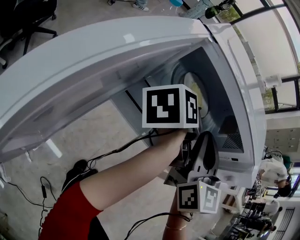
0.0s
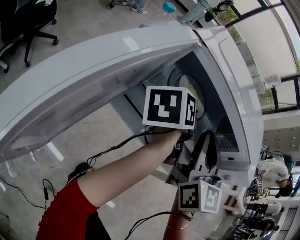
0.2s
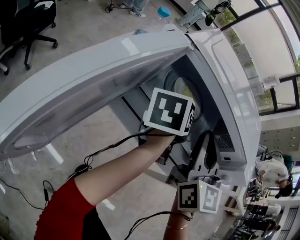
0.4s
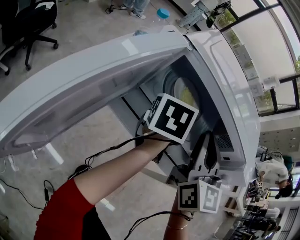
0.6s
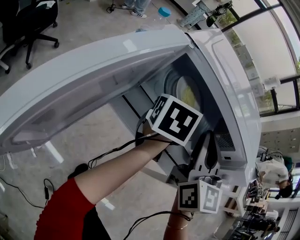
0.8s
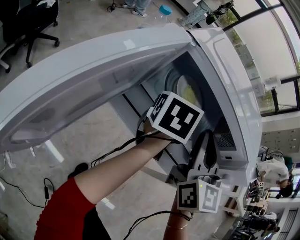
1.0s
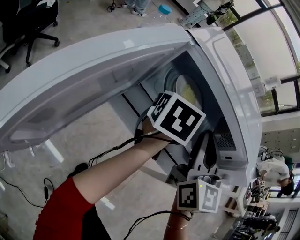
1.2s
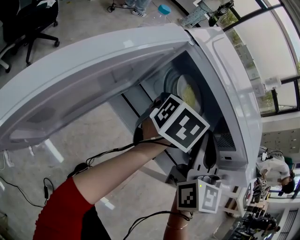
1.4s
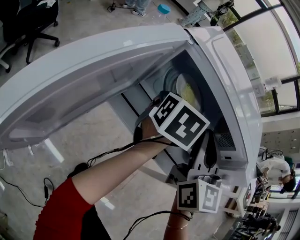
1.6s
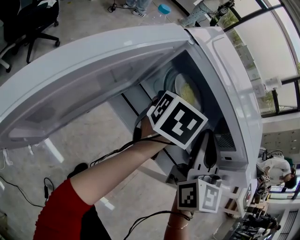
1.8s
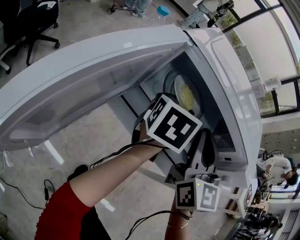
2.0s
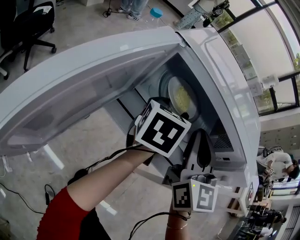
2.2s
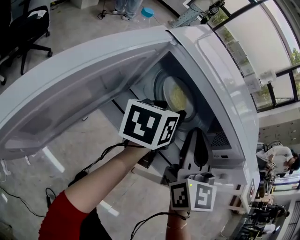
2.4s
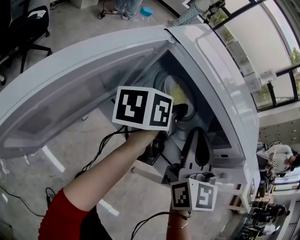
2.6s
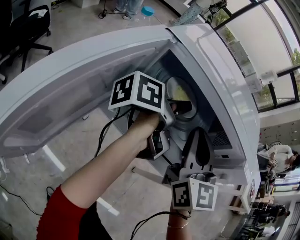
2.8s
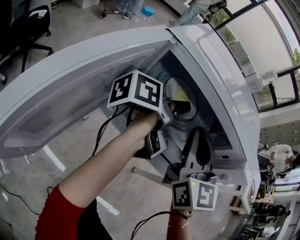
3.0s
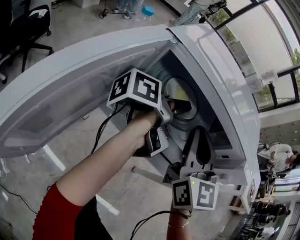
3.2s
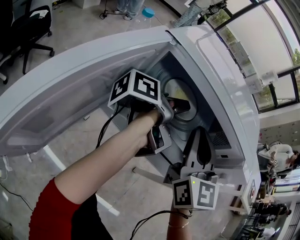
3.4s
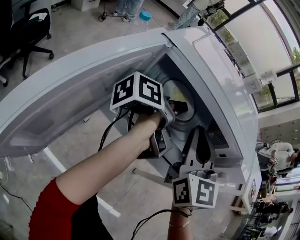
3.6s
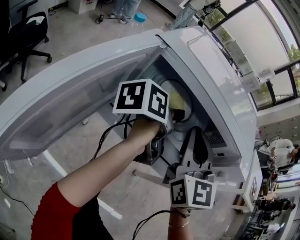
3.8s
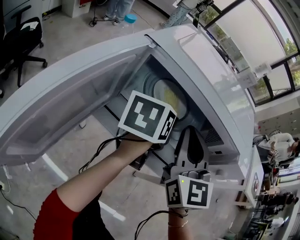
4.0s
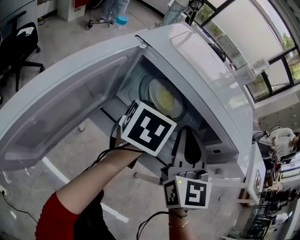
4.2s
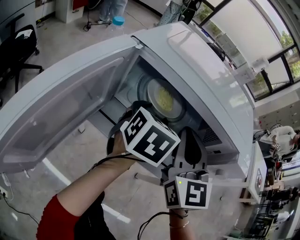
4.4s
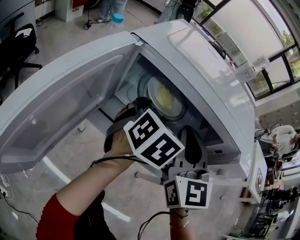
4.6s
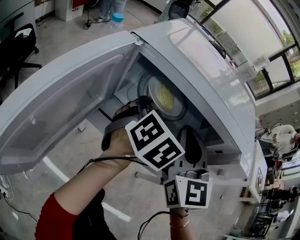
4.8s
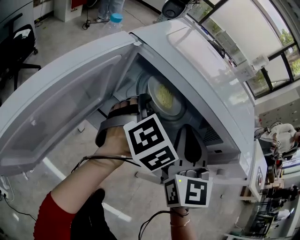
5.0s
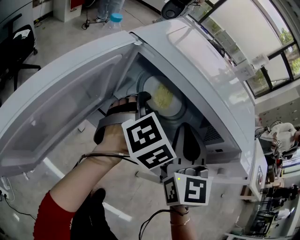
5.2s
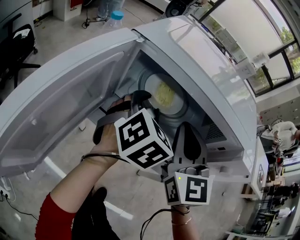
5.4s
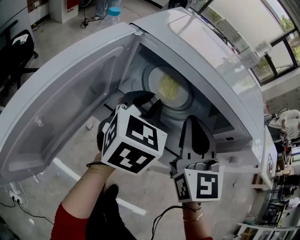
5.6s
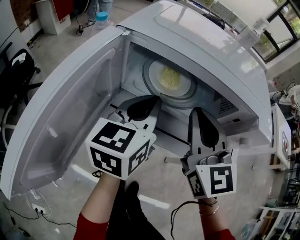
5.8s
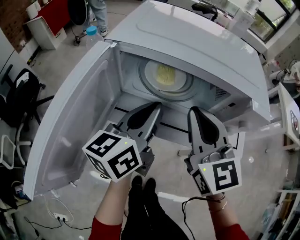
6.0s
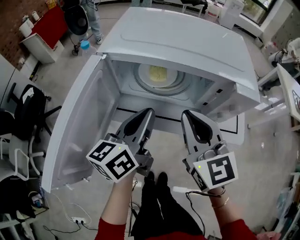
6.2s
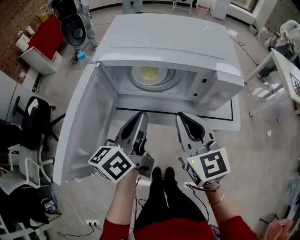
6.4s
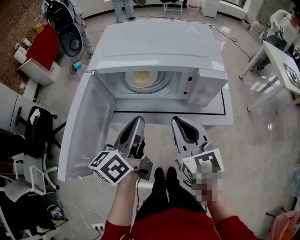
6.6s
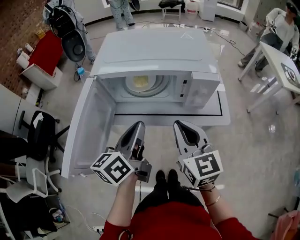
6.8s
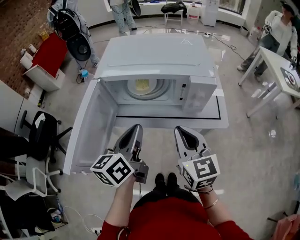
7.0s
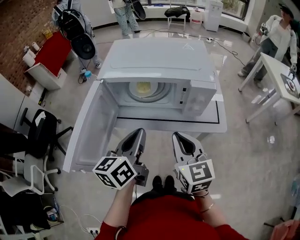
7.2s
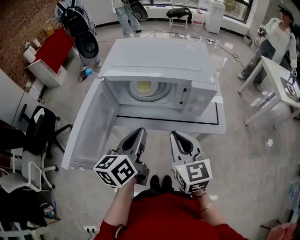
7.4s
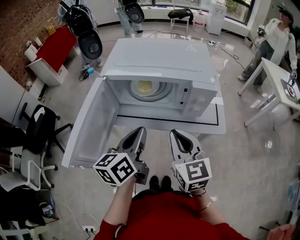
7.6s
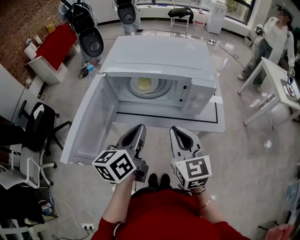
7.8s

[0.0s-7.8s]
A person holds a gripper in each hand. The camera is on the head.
0.0s to 1.6s: The left gripper rotates around the line of its fingers by some 50 degrees, clockwise from behind, and opens up.
1.6s to 3.2s: The left gripper rolls counterclockwise, seen from behind, by approximately 60 degrees.
3.2s to 4.6s: The left gripper rolls clockwise, seen from behind, by about 80 degrees.
4.6s to 6.2s: The left gripper heads backward and upward, covering roughly 15 cm, points its fingers about 30 degrees further upward, and closes; the right gripper moves backward, approximately 10 cm.
6.2s to 7.8s: Both grippers travel together backward, about 10 cm.

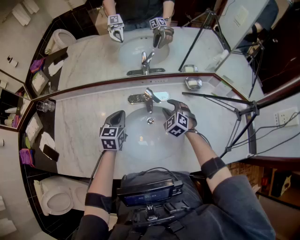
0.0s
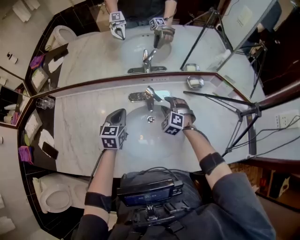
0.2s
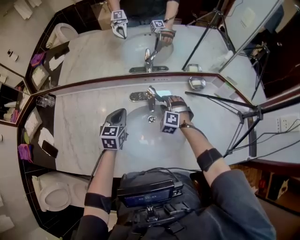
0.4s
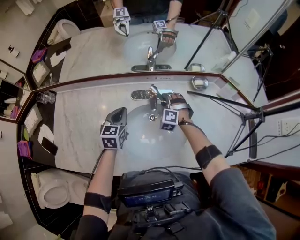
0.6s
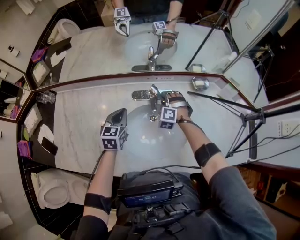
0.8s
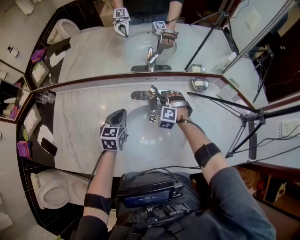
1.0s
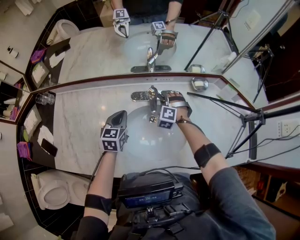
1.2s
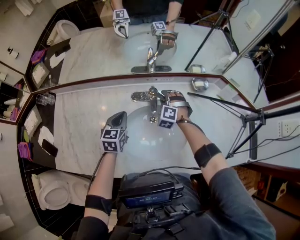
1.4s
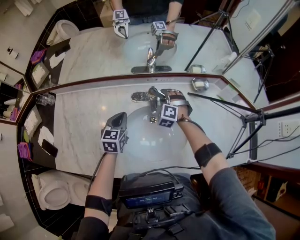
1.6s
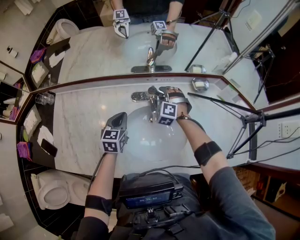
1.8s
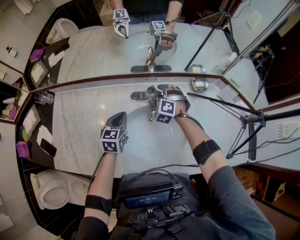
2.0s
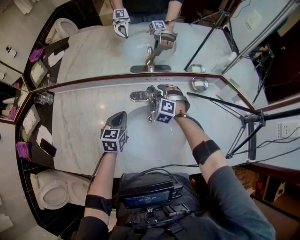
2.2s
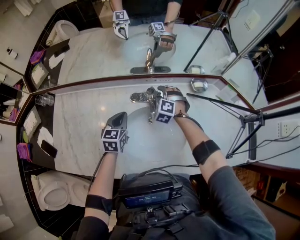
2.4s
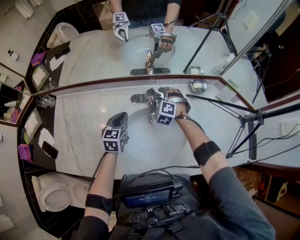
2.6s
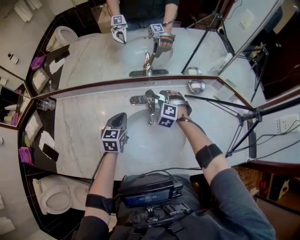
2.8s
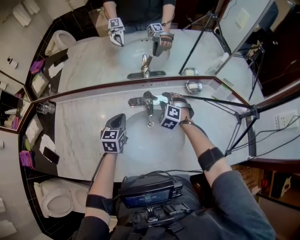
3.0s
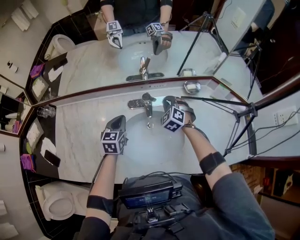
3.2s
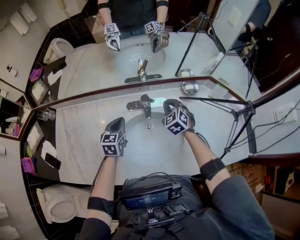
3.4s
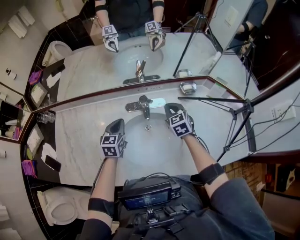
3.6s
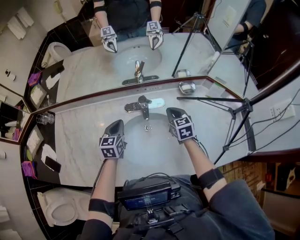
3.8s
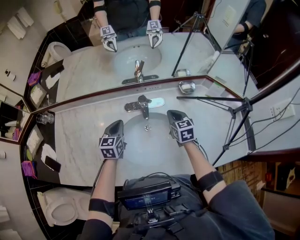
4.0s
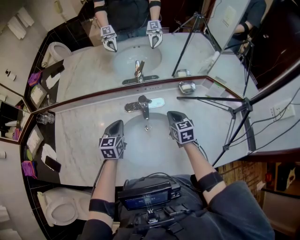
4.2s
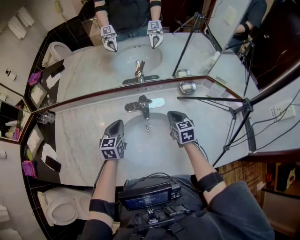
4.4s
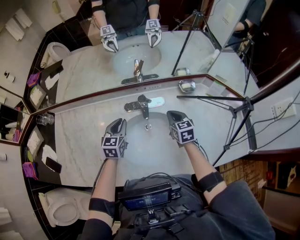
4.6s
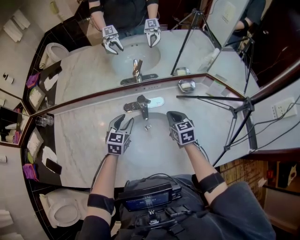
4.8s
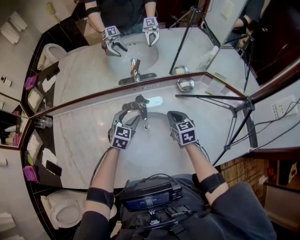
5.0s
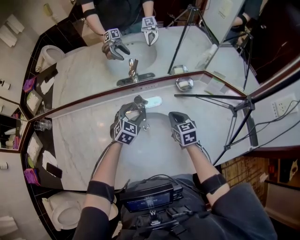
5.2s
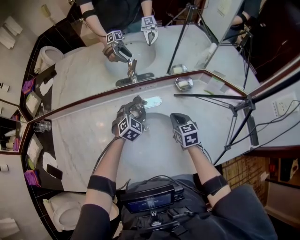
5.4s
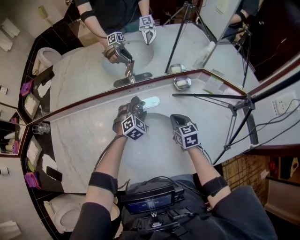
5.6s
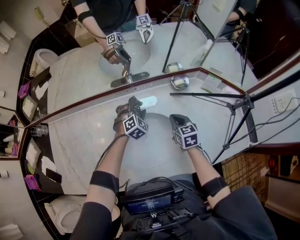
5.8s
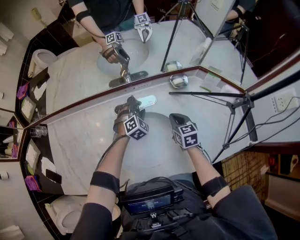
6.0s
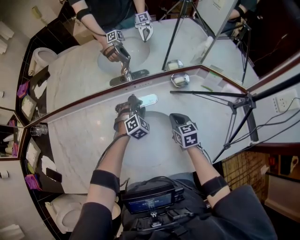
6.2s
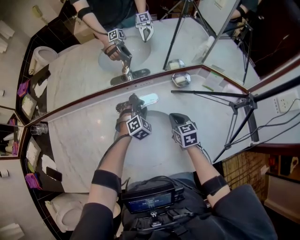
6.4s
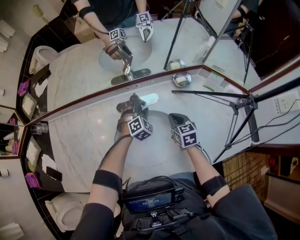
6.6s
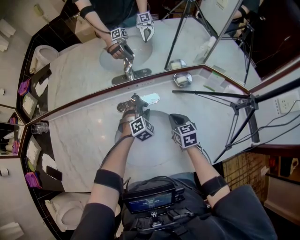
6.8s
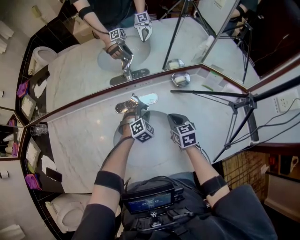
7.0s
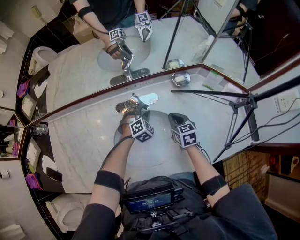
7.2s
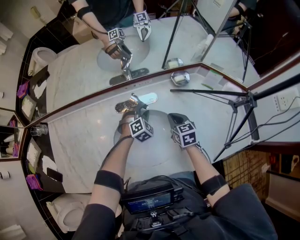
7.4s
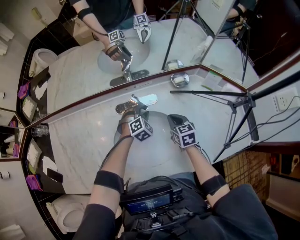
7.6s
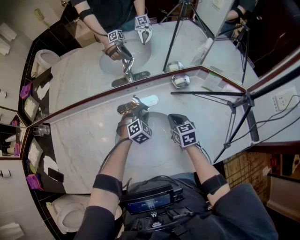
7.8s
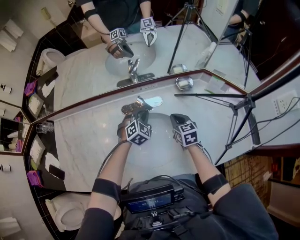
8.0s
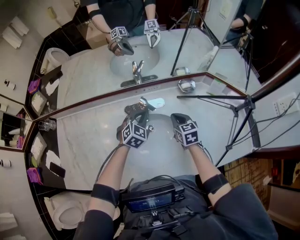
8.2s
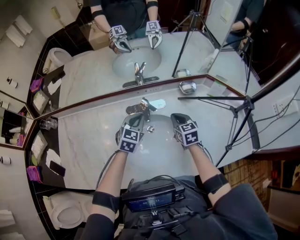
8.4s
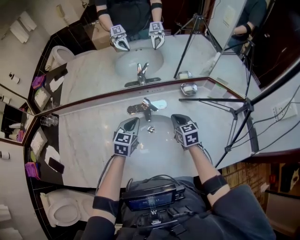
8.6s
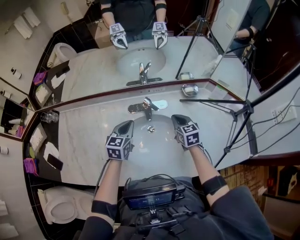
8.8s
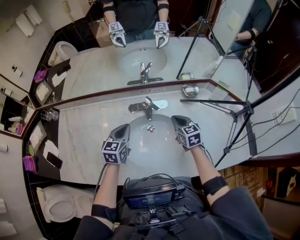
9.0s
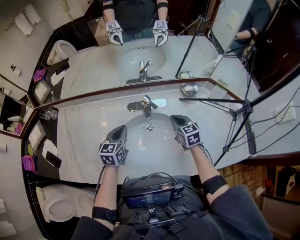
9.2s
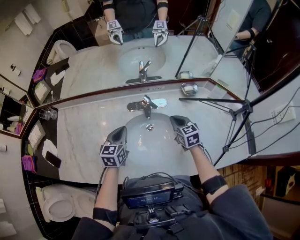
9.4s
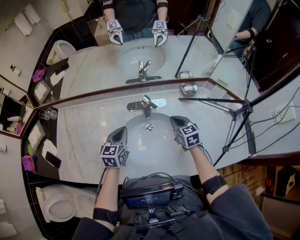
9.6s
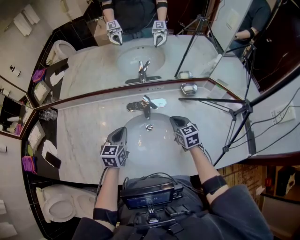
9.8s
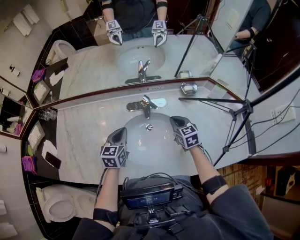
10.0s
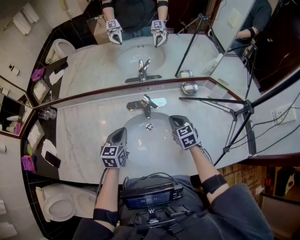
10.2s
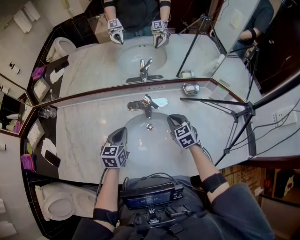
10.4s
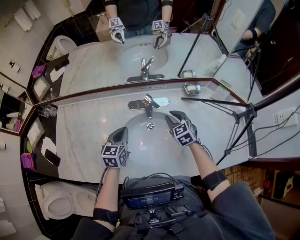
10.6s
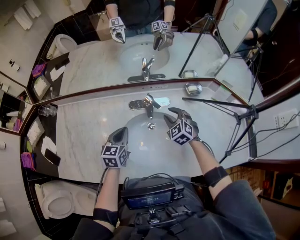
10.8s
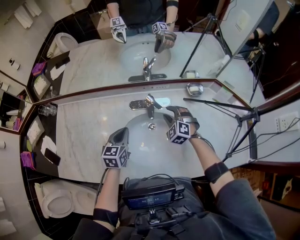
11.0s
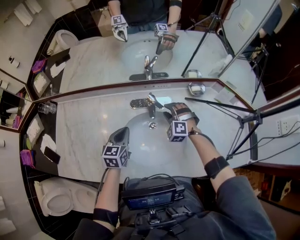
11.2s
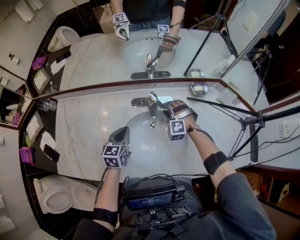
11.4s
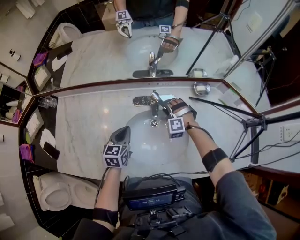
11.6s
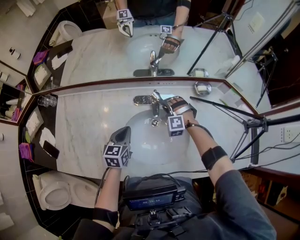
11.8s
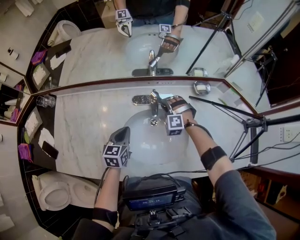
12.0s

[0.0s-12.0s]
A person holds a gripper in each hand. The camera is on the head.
0.0s to 1.6s: The right gripper moves forward and to the left, about 10 cm, and turns by some 30 degrees.
1.6s to 3.0s: There are only small adjustments of the grippers.
3.0s to 4.4s: The right gripper travels backward and to the right by some 10 cm, rotates around the line of its fingers by roughly 60 degrees, clockwise from behind, and closes its fingers.
4.4s to 6.0s: The right gripper is displaced to the right by about 5 cm. The left gripper goes some 20 cm to the right, downward and forward, twists some 60 degrees clockwise, seen from behind, and opens up.
6.0s to 7.6s: The grippers make only small movements.
7.6s to 9.0s: The right gripper shifts approximately 5 cm upward, while the left gripper travels to the left, upward and backward by roughly 25 cm, rotates around the line of its fingers by about 60 degrees, counterclockwise from behind, and closes its fingers.
9.0s to 10.4s: The grippers stay close to where they were, moving slightly.
10.4s to 12.0s: The right gripper moves forward, to the left and downward, roughly 15 cm, and rotates around the line of its fingers by approximately 70 degrees, counterclockwise from behind.

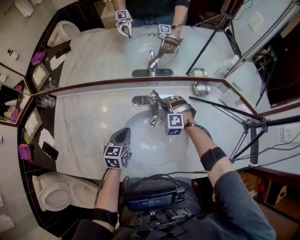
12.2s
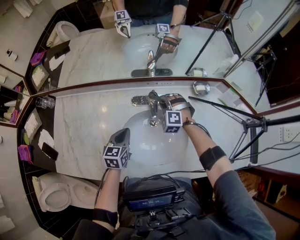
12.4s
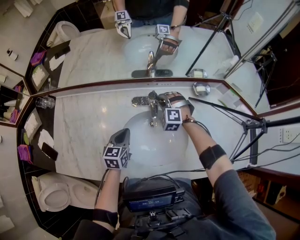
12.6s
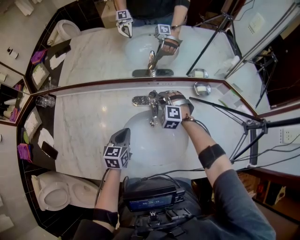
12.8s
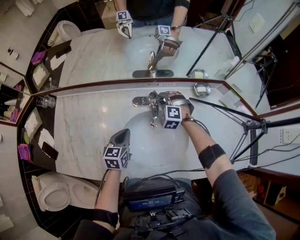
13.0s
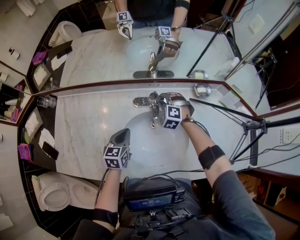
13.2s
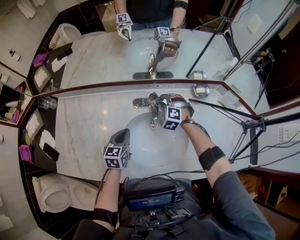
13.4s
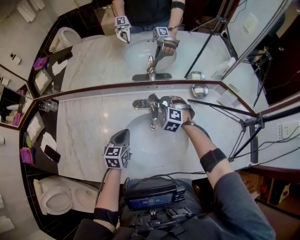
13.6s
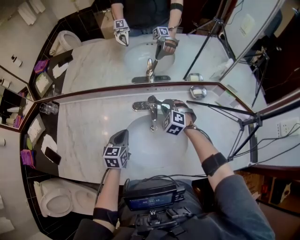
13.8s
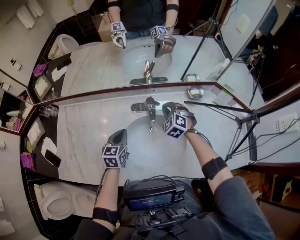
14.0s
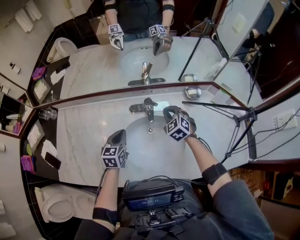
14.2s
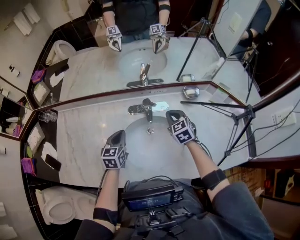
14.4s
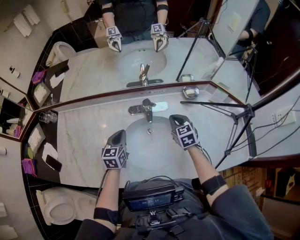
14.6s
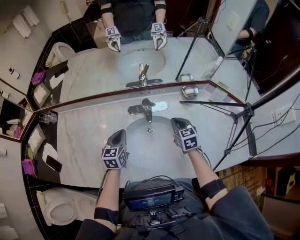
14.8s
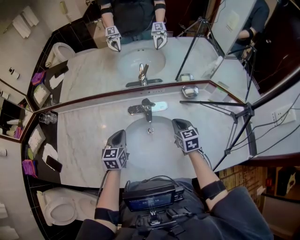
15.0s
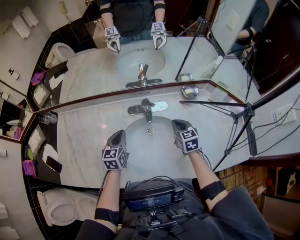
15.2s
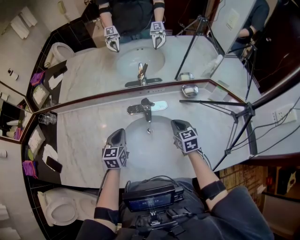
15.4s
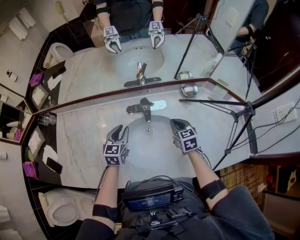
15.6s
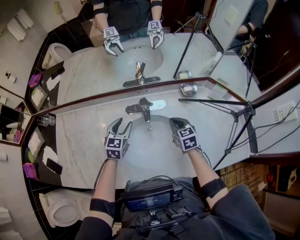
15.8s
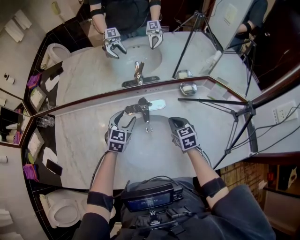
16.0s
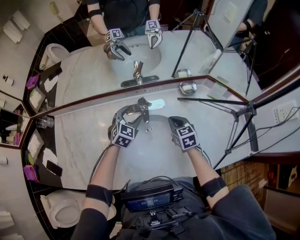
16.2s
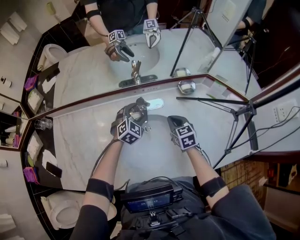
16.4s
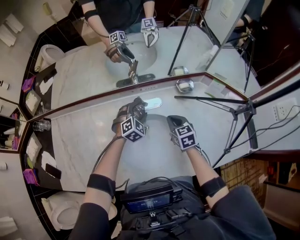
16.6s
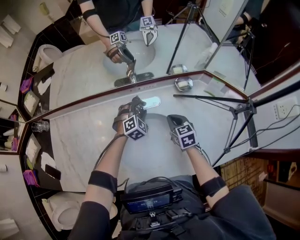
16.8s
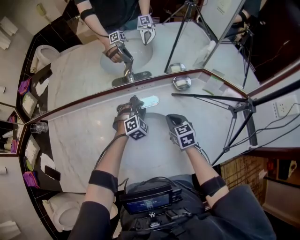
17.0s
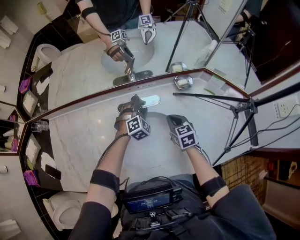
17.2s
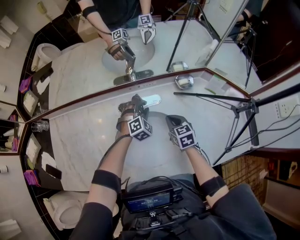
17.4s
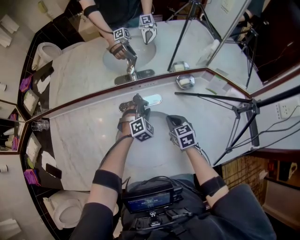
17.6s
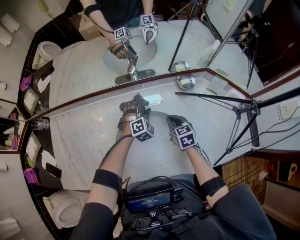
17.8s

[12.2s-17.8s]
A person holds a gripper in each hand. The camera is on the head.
12.2s to 13.6s: The grippers move only a little.
13.6s to 15.0s: The right gripper is displaced backward and to the right by about 15 cm, twists roughly 60 degrees clockwise, seen from behind, and closes its fingers.
15.0s to 16.4s: The left gripper is displaced to the right and forward by about 15 cm, twists roughly 50 degrees clockwise, seen from behind, and opens its fingers.
16.4s to 17.8s: The left gripper shifts some 5 cm downward, and closes its fingers.
